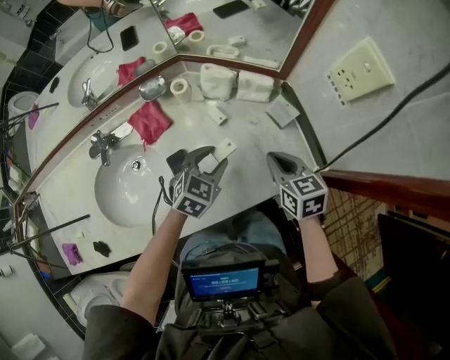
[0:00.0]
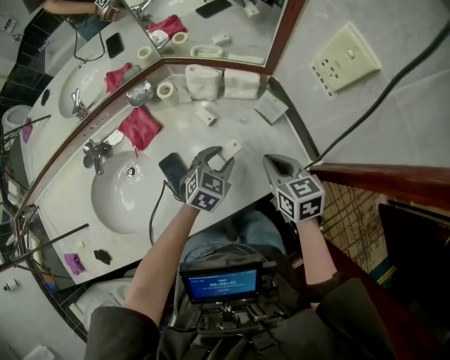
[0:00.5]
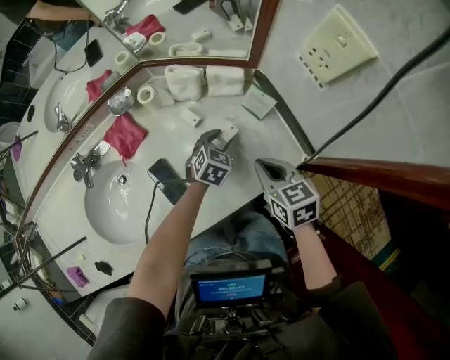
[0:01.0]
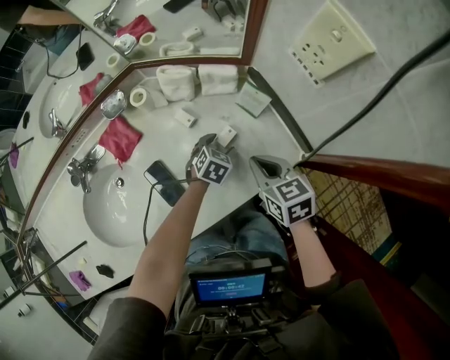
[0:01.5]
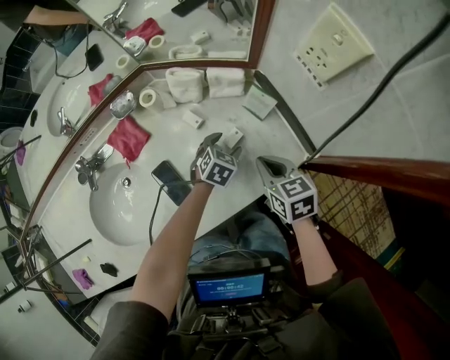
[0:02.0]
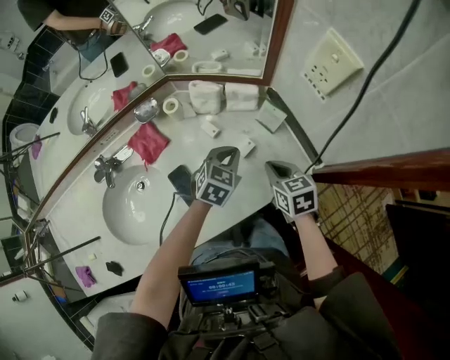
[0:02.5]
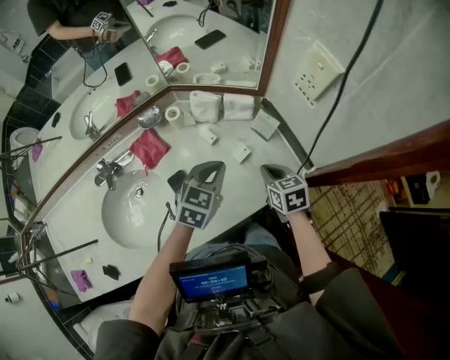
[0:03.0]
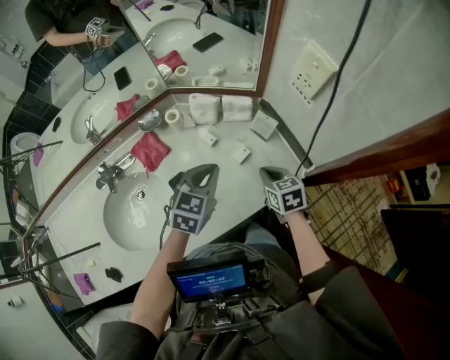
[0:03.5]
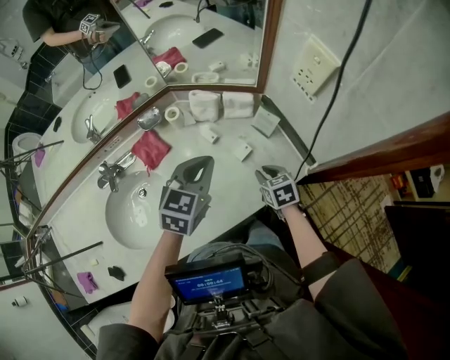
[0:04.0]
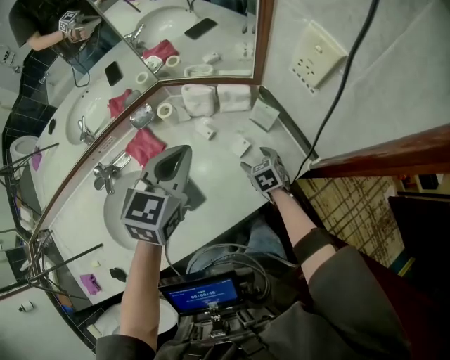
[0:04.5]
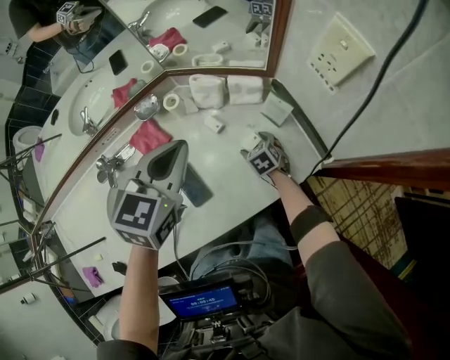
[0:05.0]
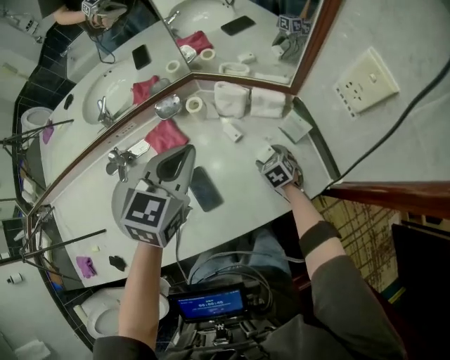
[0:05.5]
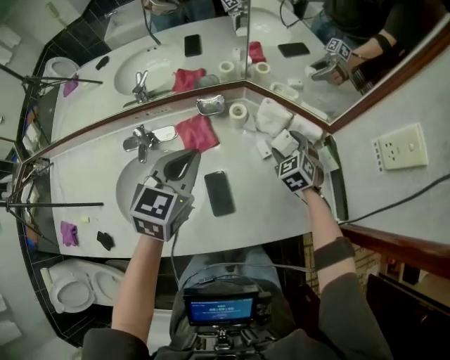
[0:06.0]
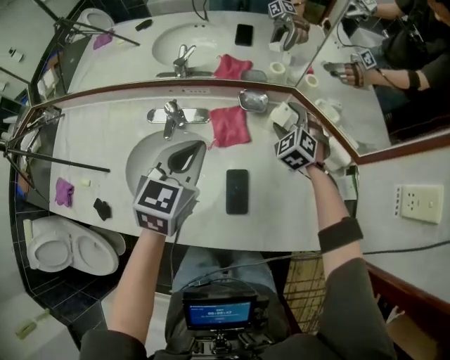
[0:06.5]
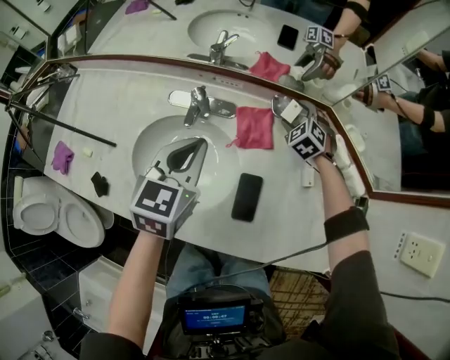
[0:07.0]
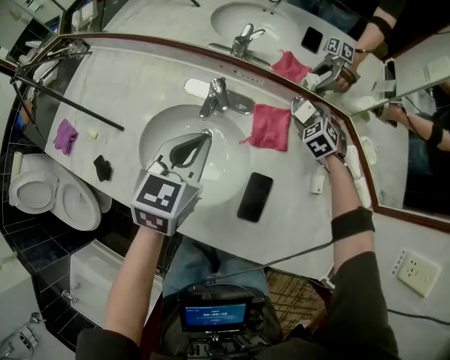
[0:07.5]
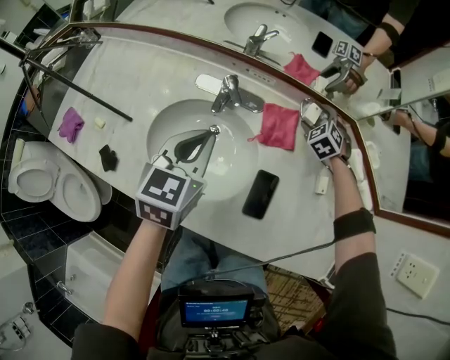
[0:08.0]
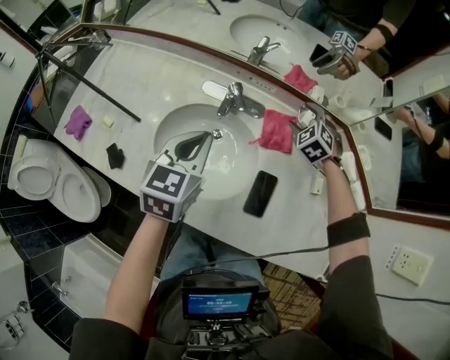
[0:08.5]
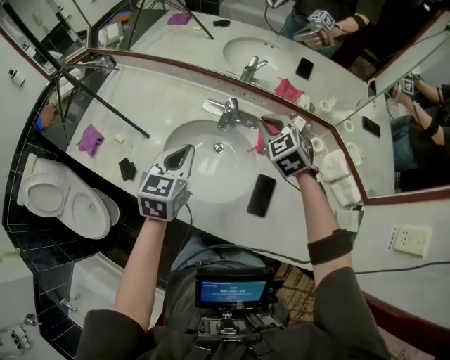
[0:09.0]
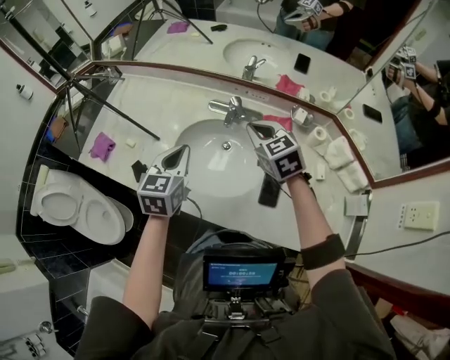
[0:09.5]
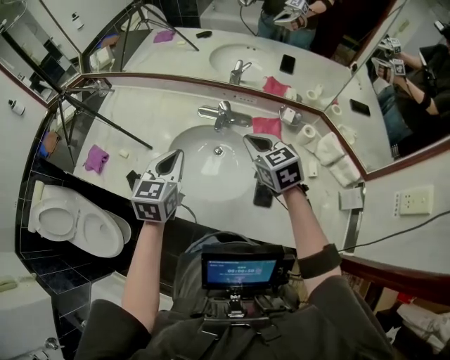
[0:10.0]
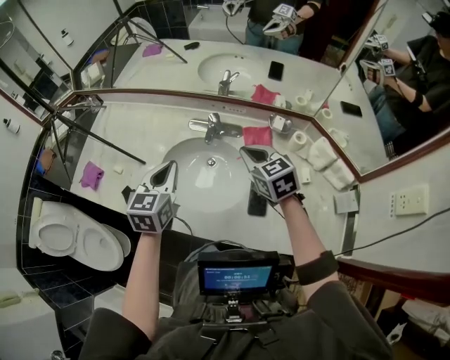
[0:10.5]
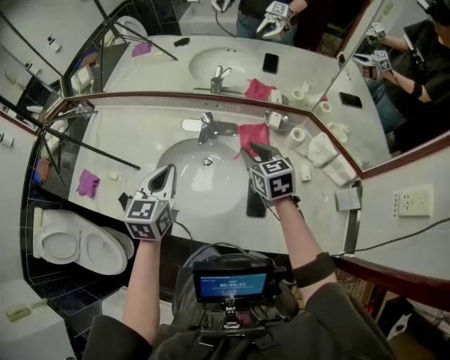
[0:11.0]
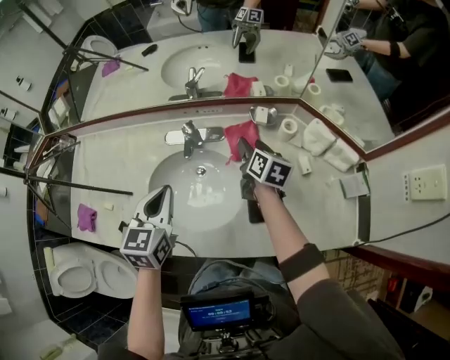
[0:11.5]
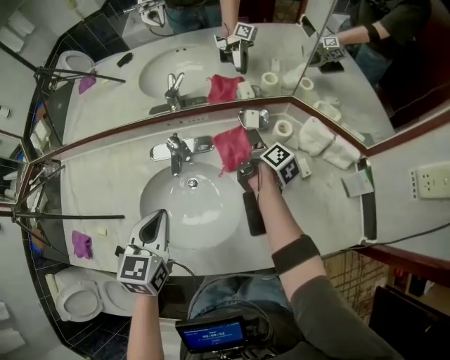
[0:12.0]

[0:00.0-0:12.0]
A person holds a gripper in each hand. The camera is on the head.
0:00.0 to 0:02.0: The left gripper moves downward, to the right and forward, approximately 15 cm.
0:02.0 to 0:04.0: The right gripper is displaced downward by some 5 cm; the left gripper goes approximately 25 cm upward, rotates approximately 20 degrees, and closes its fingers.
0:04.0 to 0:06.0: The left gripper travels to the left by approximately 20 cm, and turns by some 20 degrees. Meanwhile the right gripper goes roughly 25 cm forward and to the left, twists some 50 degrees counterclockwise, seen from behind, and opens its fingers.
0:06.0 to 0:08.0: The left gripper moves roughly 20 cm, and rotates roughly 30 degrees. The right gripper ends up roughly 30 cm from where it was, and turns by approximately 30 degrees.
0:08.0 to 0:10.0: The left gripper travels to the left, backward and upward by some 15 cm; the right gripper moves to the left, upward and backward, some 35 cm, swivels approximately 40 degrees, and closes.
0:10.0 to 0:12.0: The right gripper shifts by approximately 35 cm, rolls clockwise, seen from behind, by some 90 degrees, and opens its fingers. The left gripper shifts by approximately 10 cm.

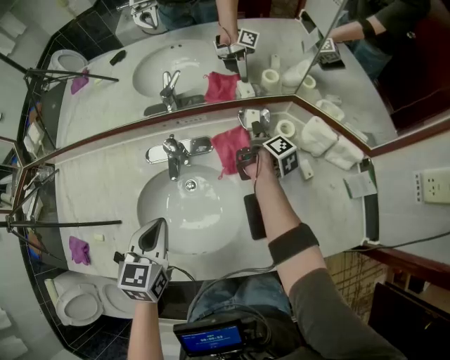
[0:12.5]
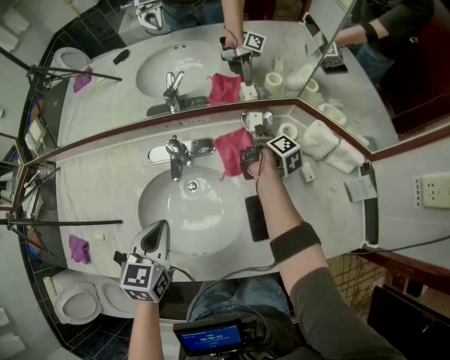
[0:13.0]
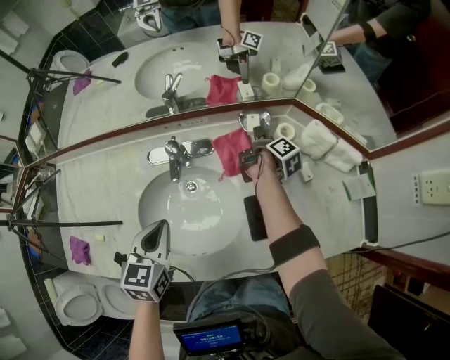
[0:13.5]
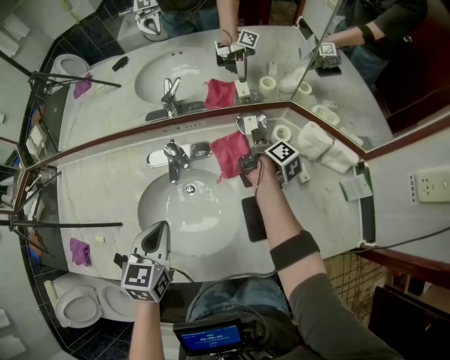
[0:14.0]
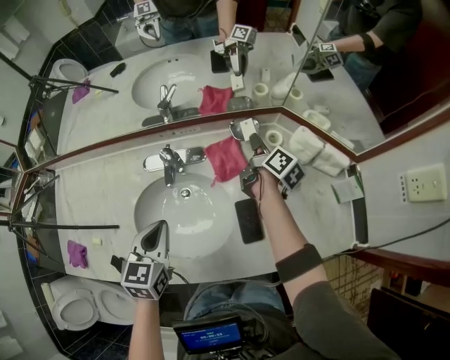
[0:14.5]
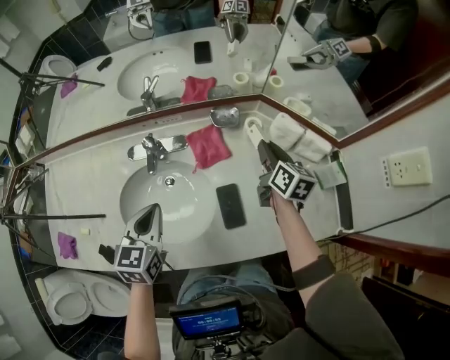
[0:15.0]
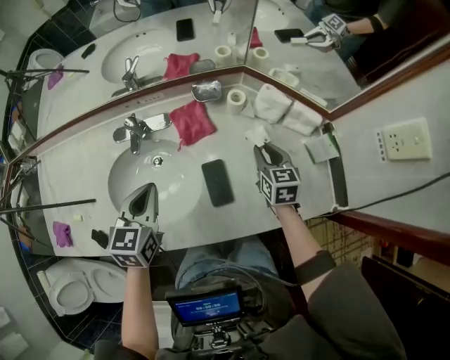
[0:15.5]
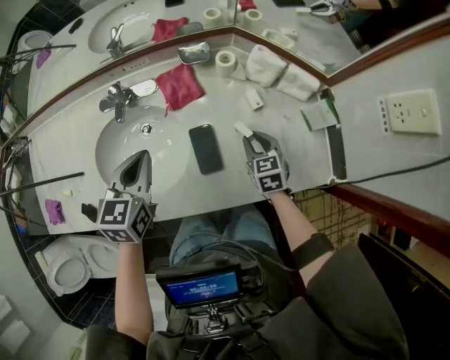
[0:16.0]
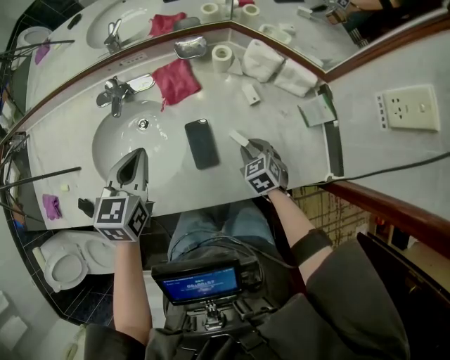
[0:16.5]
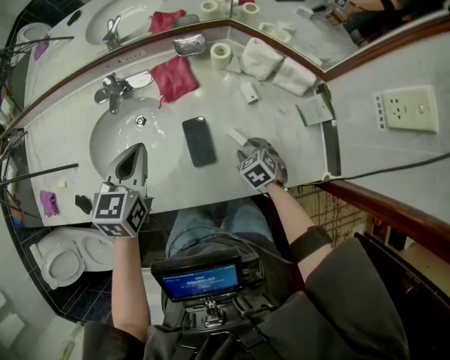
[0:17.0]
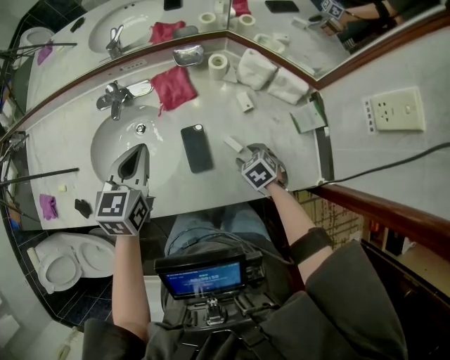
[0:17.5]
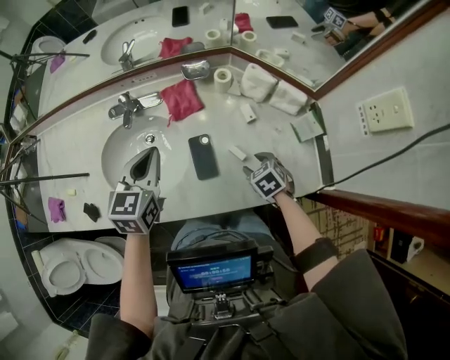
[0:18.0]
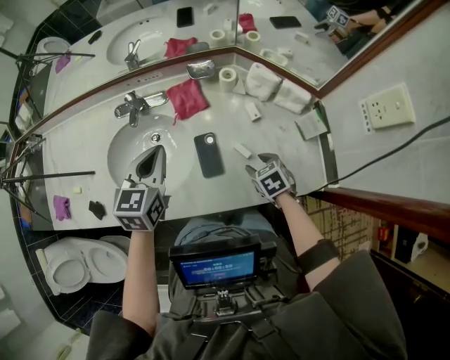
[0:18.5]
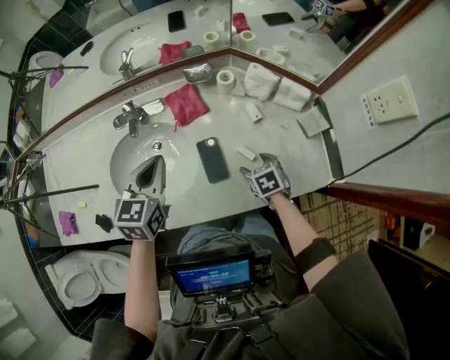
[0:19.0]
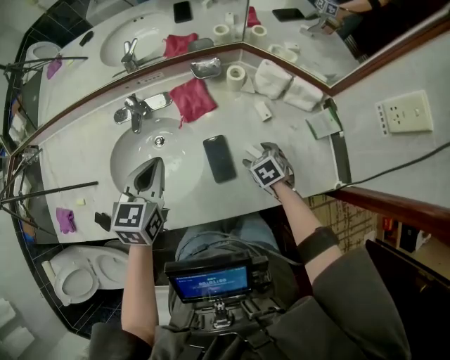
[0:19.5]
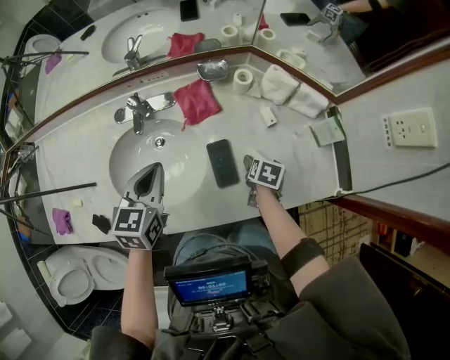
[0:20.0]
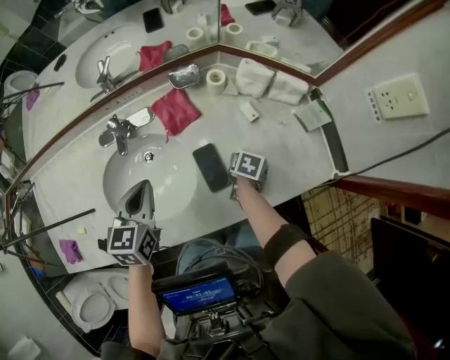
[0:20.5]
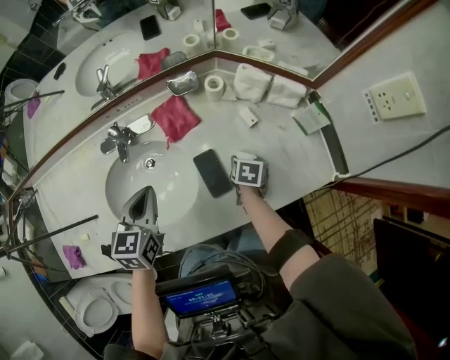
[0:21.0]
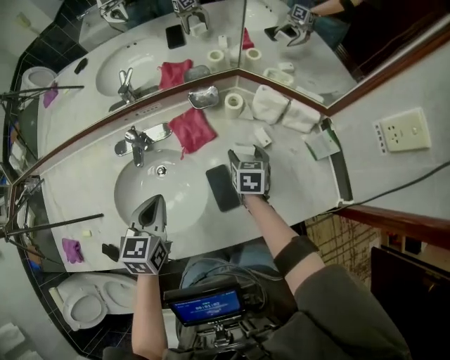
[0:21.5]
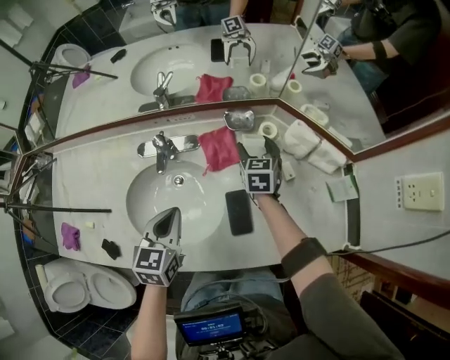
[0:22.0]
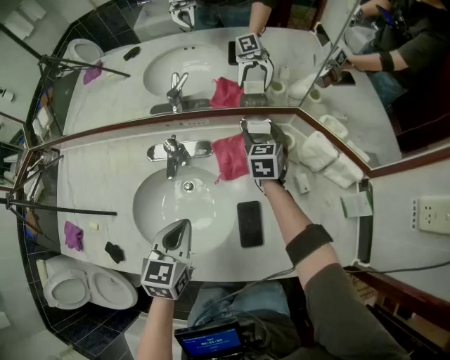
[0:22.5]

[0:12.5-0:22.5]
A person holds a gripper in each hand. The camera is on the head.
0:12.5 to 0:14.5: The right gripper heads upward, covering roughly 10 cm, and turns by some 20 degrees.
0:14.5 to 0:16.5: The right gripper moves backward, downward and to the right, some 35 cm, and rolls counterclockwise, seen from behind, by roughly 80 degrees, while the left gripper travels to the right by some 10 cm.
0:16.5 to 0:18.5: The right gripper shifts some 5 cm upward.
0:18.5 to 0:20.5: The right gripper is displaced downward by about 10 cm, and twists approximately 60 degrees clockwise, seen from behind. Meanwhile the left gripper ends up approximately 10 cm from where it was.
0:20.5 to 0:22.5: The right gripper moves forward, to the left and upward, some 35 cm, and tilts its fingers some 40 degrees upward.

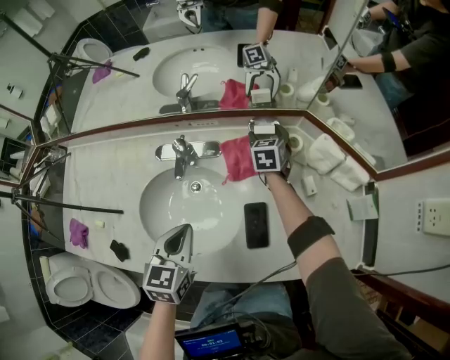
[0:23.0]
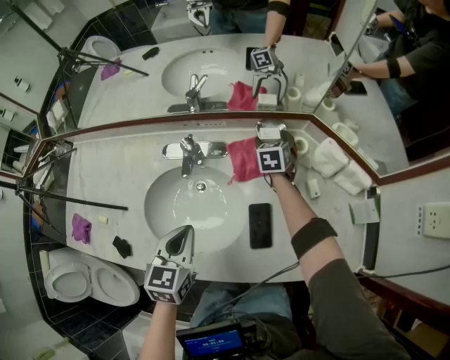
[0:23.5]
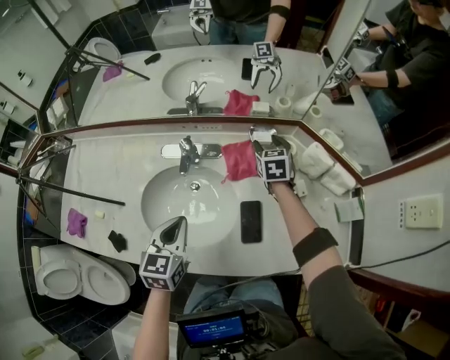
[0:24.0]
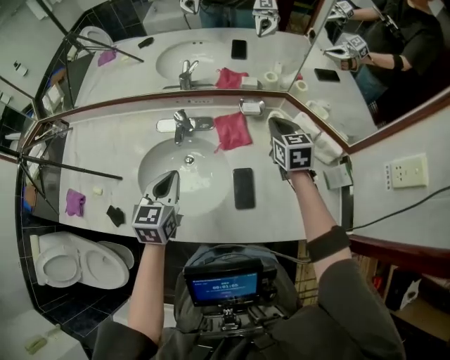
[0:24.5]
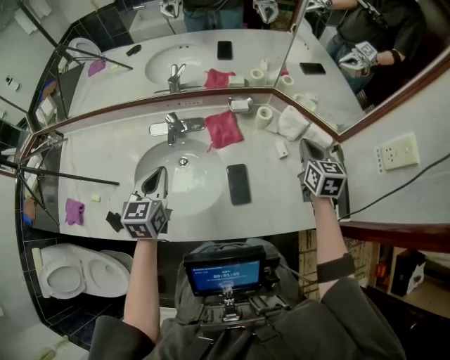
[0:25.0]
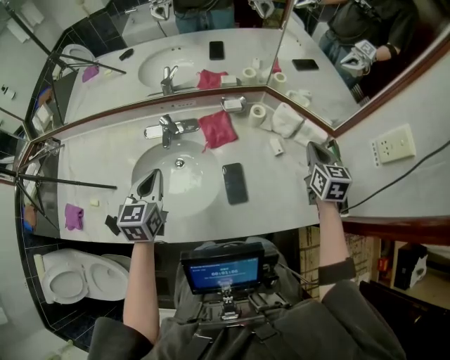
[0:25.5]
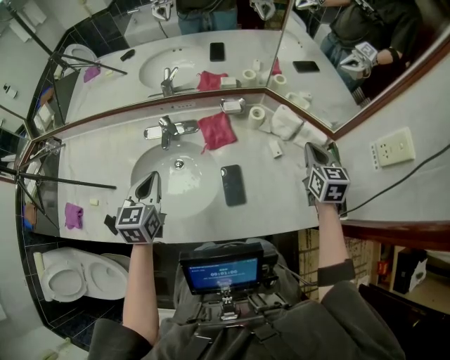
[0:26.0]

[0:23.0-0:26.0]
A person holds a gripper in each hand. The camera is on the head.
0:23.0 to 0:24.5: The right gripper goes some 20 cm upward and backward, and closes its fingers. The left gripper travels upward by about 5 cm.
0:24.5 to 0:26.0: The right gripper shifts roughly 20 cm to the right and backward.

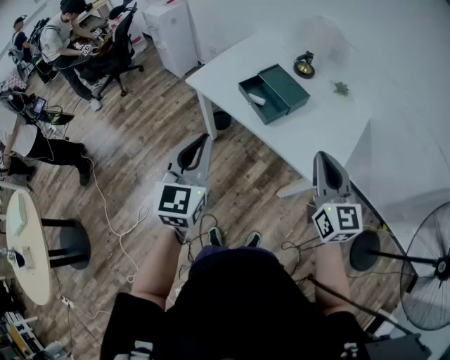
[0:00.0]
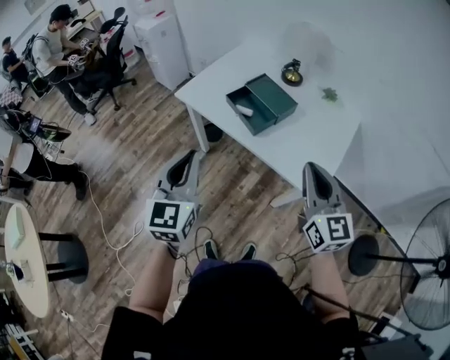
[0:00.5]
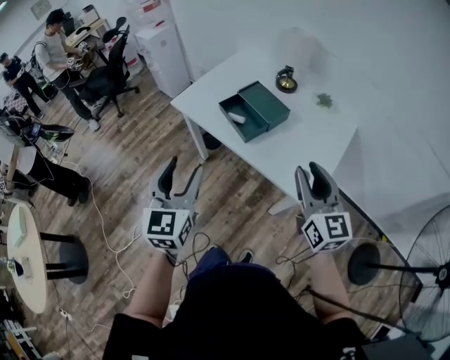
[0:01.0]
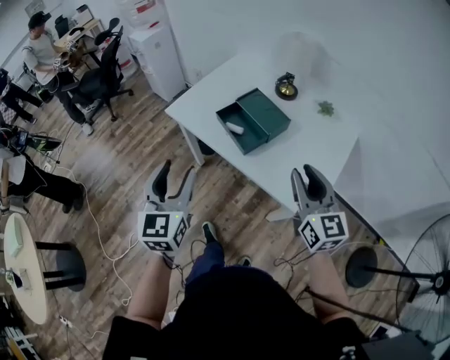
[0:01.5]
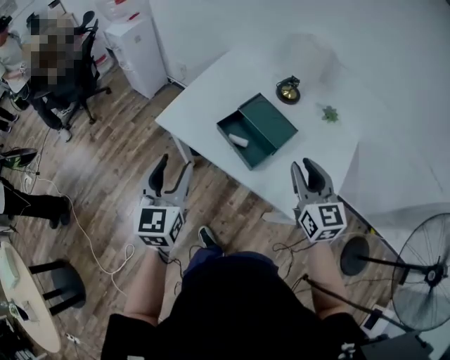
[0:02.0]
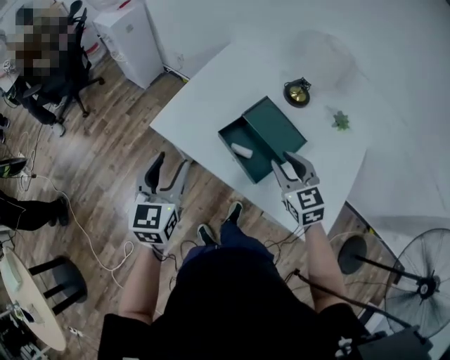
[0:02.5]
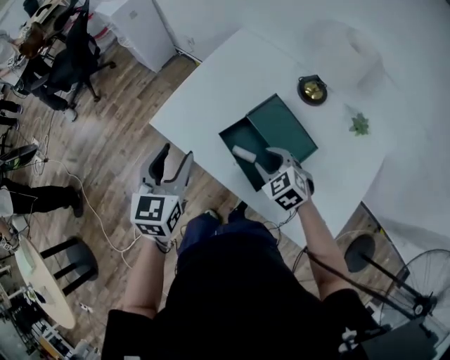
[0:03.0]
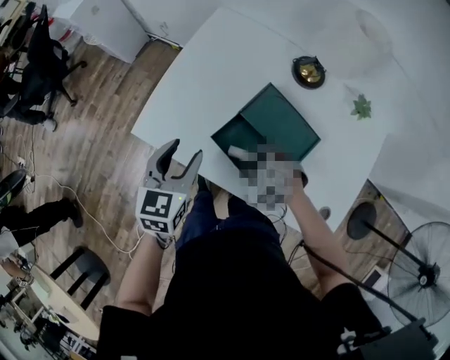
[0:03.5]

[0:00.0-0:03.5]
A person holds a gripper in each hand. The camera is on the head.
0:00.0 to 0:02.0: Both grippers travel together forward, approximately 25 cm. The right gripper opens, while the left gripper opens up.
0:02.0 to 0:03.5: The right gripper travels downward and forward by approximately 40 cm, and angles its fingers downward, by some 60 degrees; the left gripper goes some 30 cm forward and downward, and turns by some 30 degrees.
